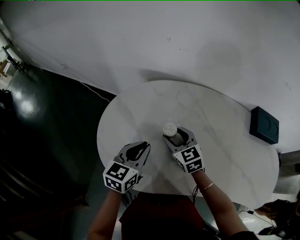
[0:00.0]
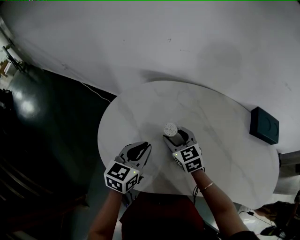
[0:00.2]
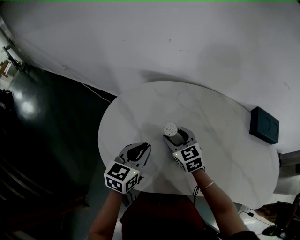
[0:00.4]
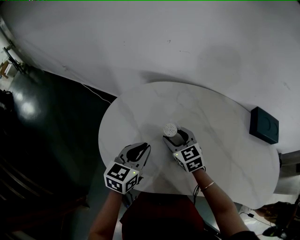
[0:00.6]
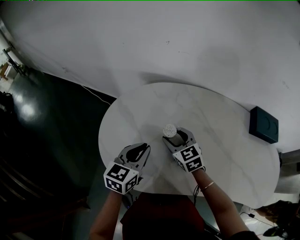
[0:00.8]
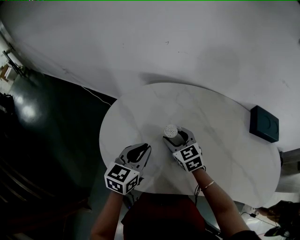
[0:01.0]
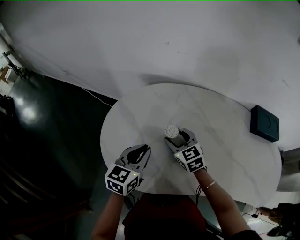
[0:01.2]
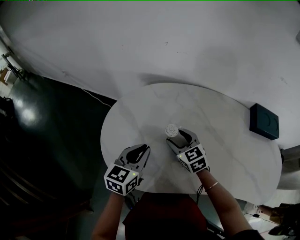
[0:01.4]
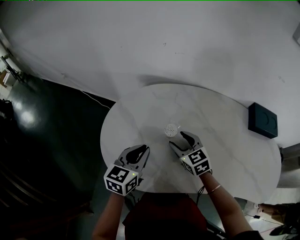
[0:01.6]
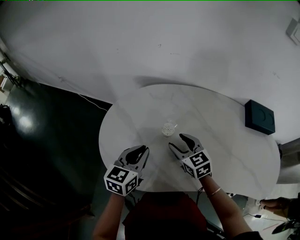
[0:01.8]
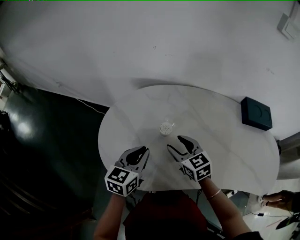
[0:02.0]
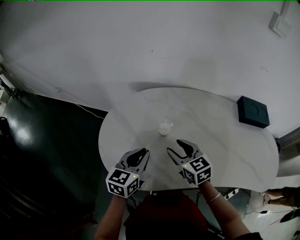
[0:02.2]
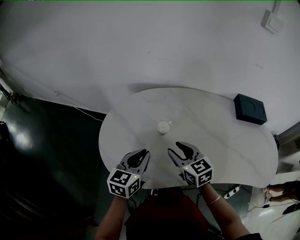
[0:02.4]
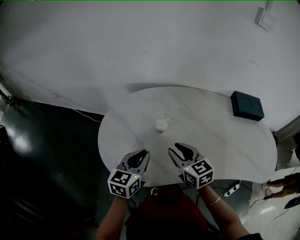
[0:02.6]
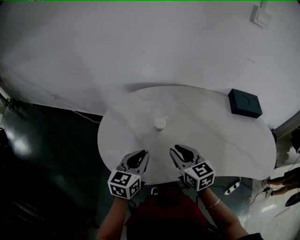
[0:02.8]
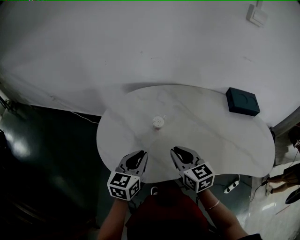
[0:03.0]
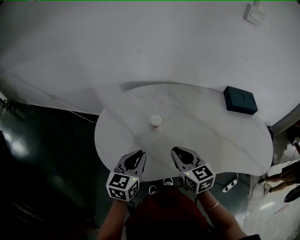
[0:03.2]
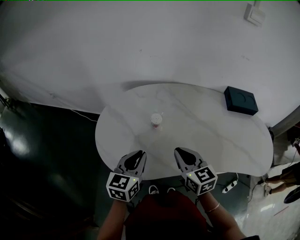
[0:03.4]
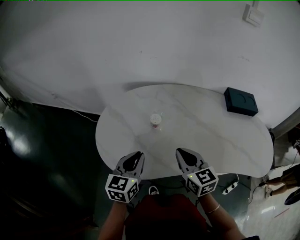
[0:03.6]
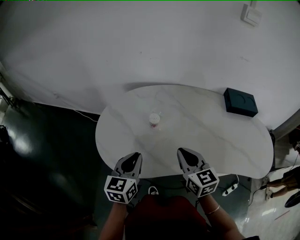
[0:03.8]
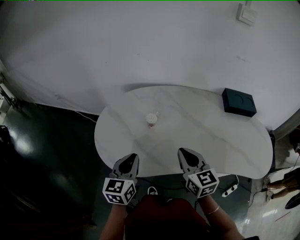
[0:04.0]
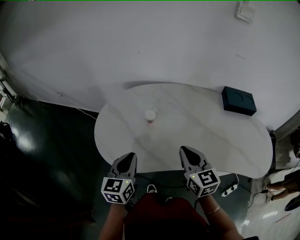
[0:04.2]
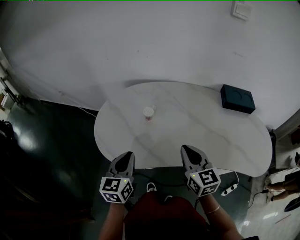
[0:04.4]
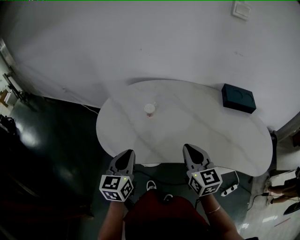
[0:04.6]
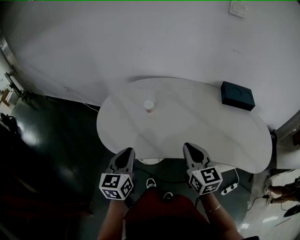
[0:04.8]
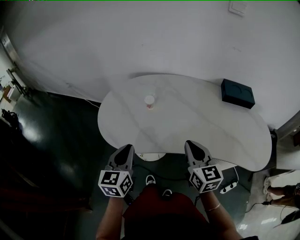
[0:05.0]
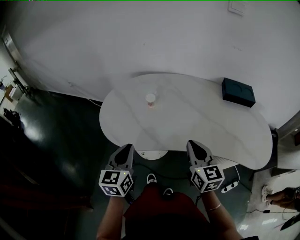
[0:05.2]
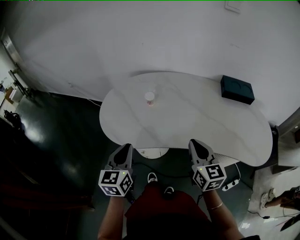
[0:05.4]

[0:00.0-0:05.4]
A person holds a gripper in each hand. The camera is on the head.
0:00.0 to 0:01.4: There are only small adjustments of the grippers.
0:01.4 to 0:02.8: The right gripper moves backward and upward, some 15 cm, swivels some 20 degrees, and closes; the left gripper shifts approximately 5 cm backward.
0:02.8 to 0:04.0: The left gripper is displaced backward by roughly 5 cm; the right gripper goes roughly 10 cm to the right and backward, and closes its fingers.
0:04.0 to 0:05.4: The right gripper heads backward and to the right, covering roughly 15 cm; the left gripper travels backward by about 10 cm.

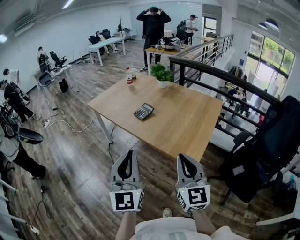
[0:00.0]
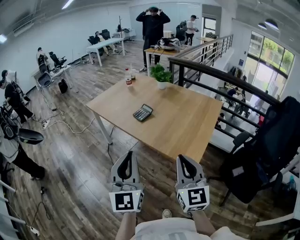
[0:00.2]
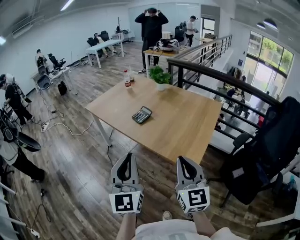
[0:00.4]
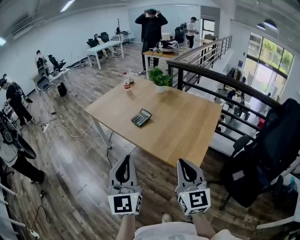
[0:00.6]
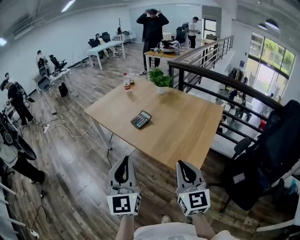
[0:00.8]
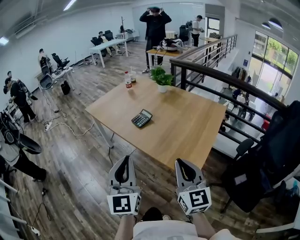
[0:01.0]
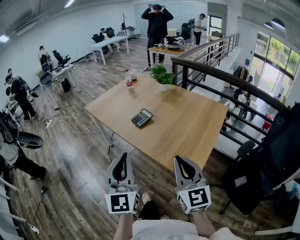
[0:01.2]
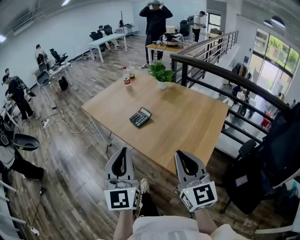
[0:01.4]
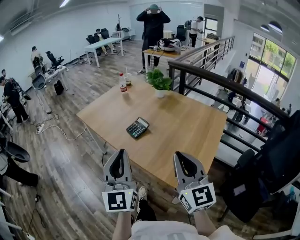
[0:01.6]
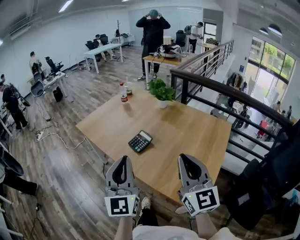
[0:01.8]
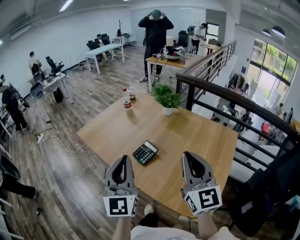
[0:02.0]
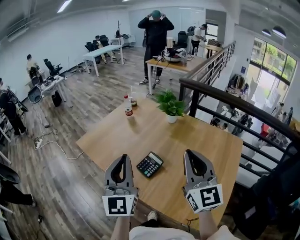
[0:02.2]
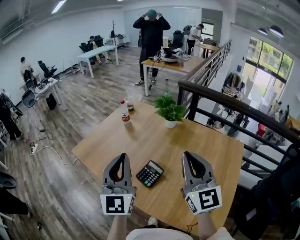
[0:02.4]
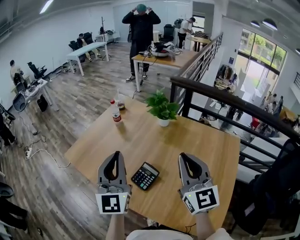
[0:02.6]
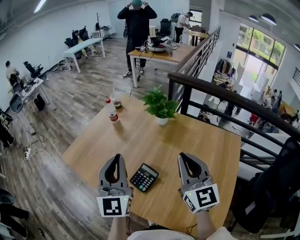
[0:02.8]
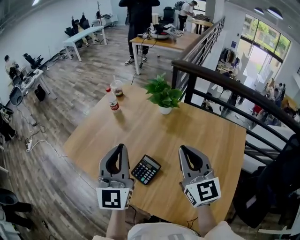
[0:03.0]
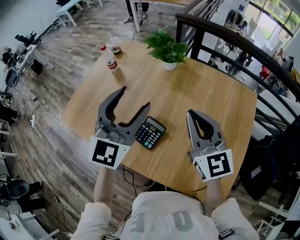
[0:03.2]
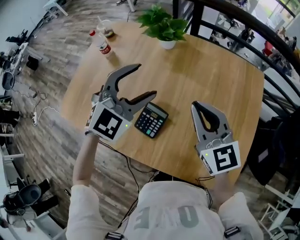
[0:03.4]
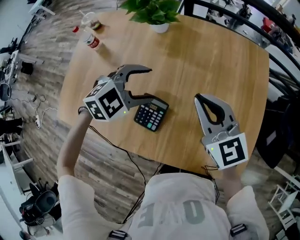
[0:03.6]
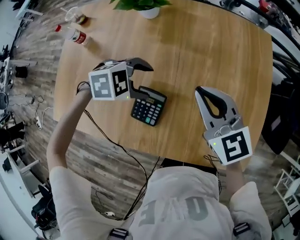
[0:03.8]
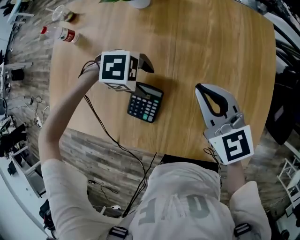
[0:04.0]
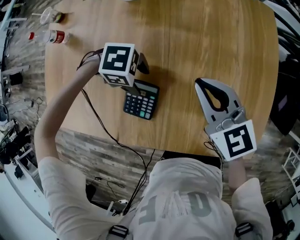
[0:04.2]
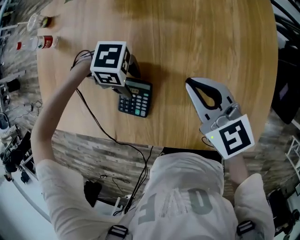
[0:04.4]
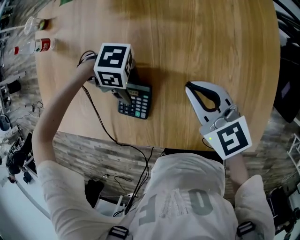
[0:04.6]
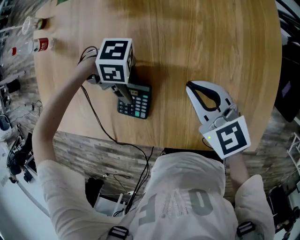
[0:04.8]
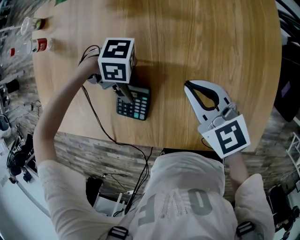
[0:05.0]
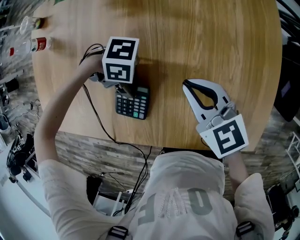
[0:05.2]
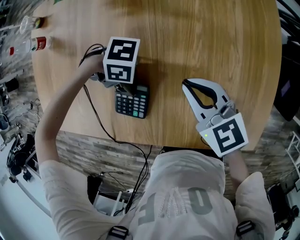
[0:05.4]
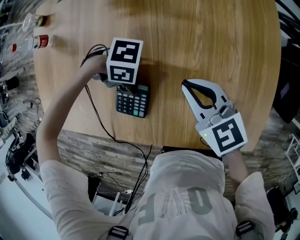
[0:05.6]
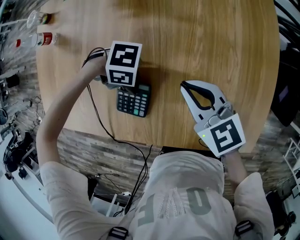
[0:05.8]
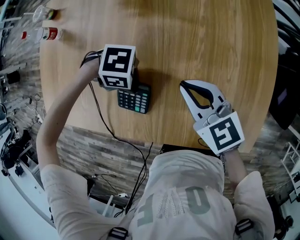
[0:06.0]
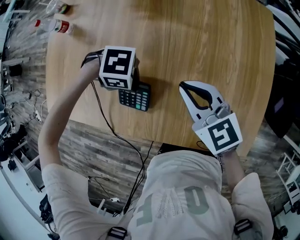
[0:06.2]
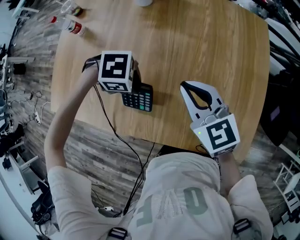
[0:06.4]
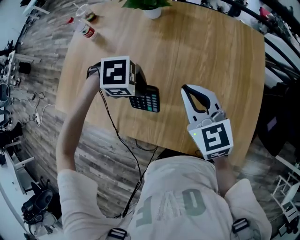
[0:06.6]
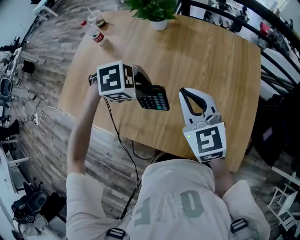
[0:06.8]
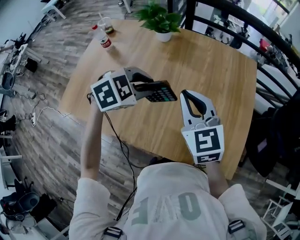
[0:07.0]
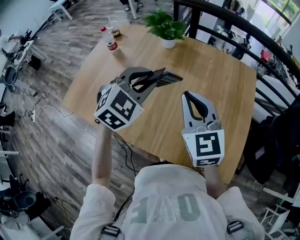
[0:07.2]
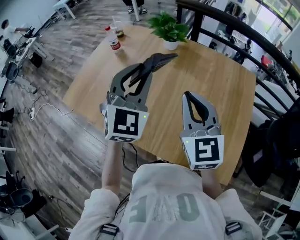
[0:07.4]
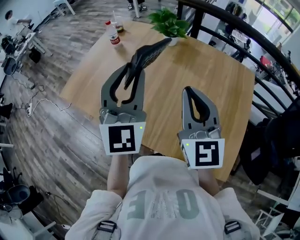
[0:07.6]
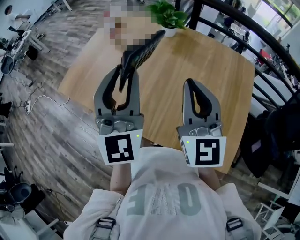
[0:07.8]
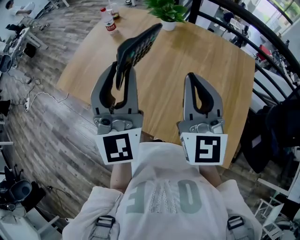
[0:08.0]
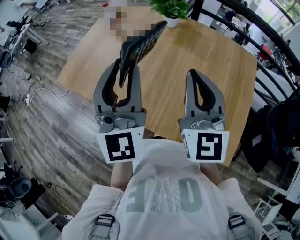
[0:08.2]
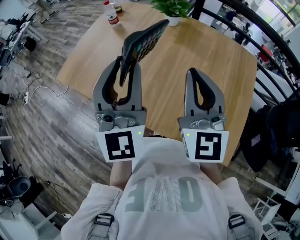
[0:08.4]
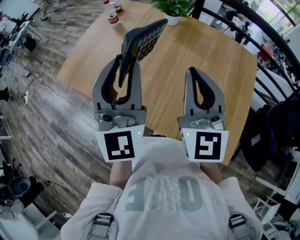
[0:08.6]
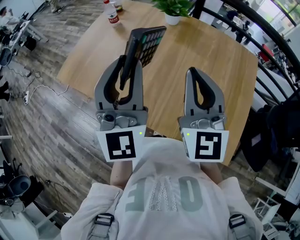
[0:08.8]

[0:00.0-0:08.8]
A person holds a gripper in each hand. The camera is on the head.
0:00.0 to 0:01.4: Both grippers move forward, some 10 cm.
0:01.4 to 0:03.0: Both grippers move forward, about 40 cm.
0:03.0 to 0:04.4: The right gripper shifts some 20 cm downward, and turns by some 30 degrees; the left gripper goes some 35 cm downward, points its fingers about 60 degrees further downward, and opens its fingers.
0:04.4 to 0:05.8: The left gripper closes its fingers.
0:05.8 to 0:07.4: The right gripper moves upward, approximately 25 cm, and turns by some 30 degrees; the left gripper heads upward, covering approximately 35 cm, and angles its fingers upward, by some 40 degrees.
0:07.4 to 0:08.8: The left gripper goes approximately 10 cm backward, and rotates approximately 30 degrees.

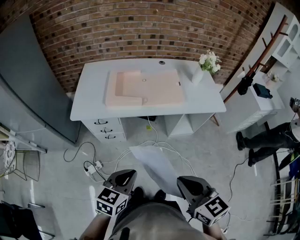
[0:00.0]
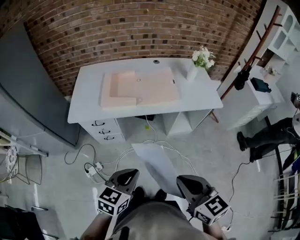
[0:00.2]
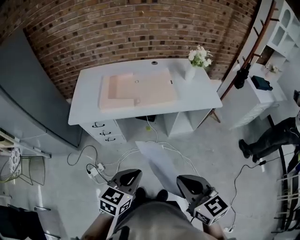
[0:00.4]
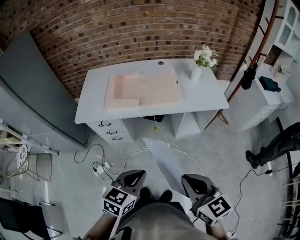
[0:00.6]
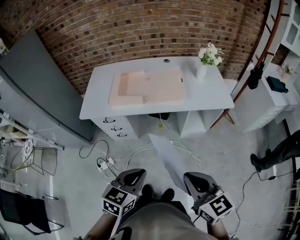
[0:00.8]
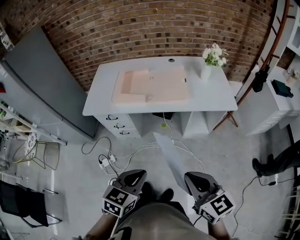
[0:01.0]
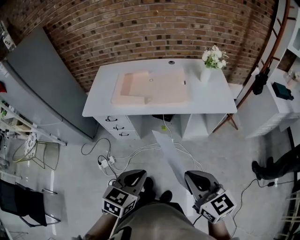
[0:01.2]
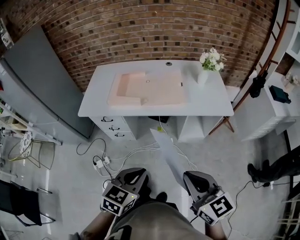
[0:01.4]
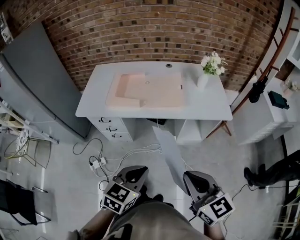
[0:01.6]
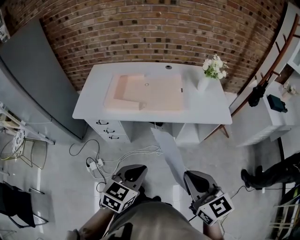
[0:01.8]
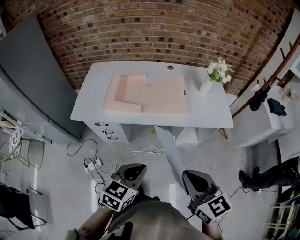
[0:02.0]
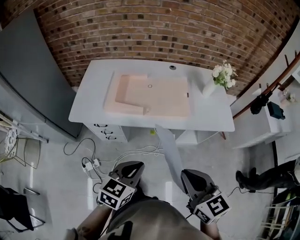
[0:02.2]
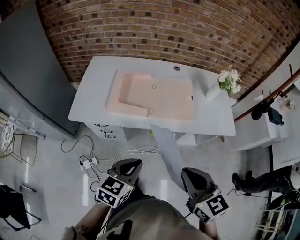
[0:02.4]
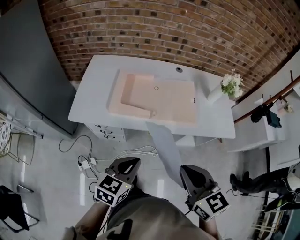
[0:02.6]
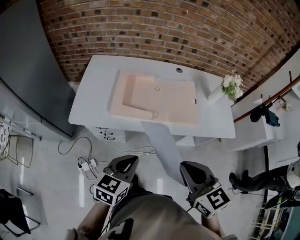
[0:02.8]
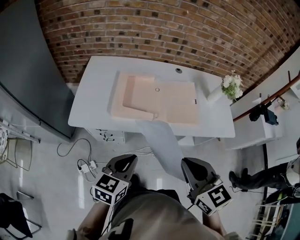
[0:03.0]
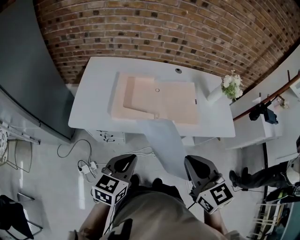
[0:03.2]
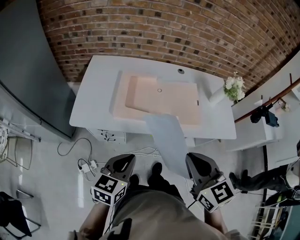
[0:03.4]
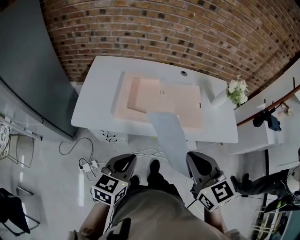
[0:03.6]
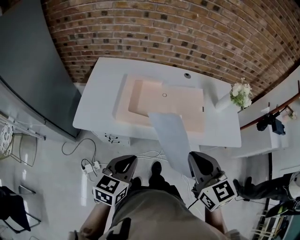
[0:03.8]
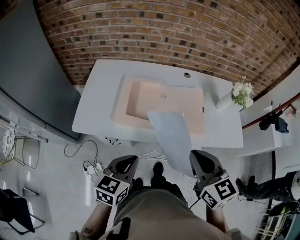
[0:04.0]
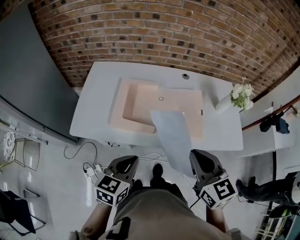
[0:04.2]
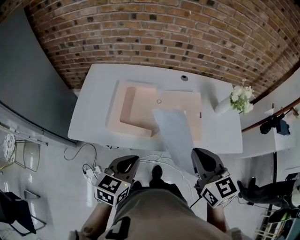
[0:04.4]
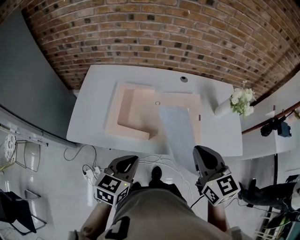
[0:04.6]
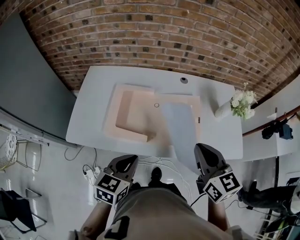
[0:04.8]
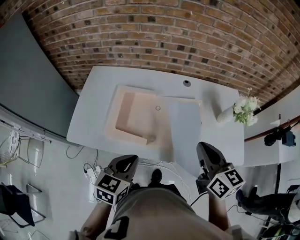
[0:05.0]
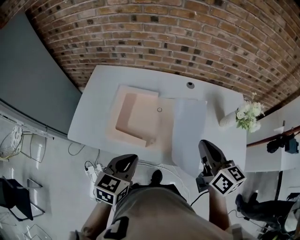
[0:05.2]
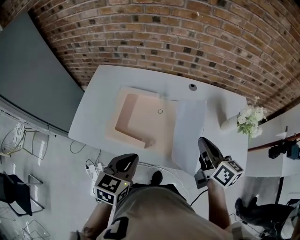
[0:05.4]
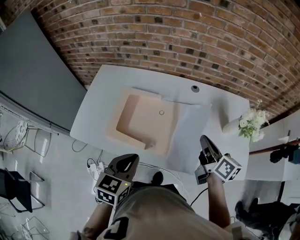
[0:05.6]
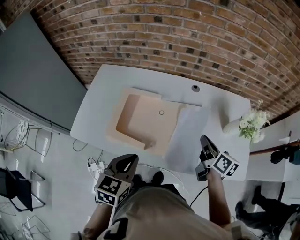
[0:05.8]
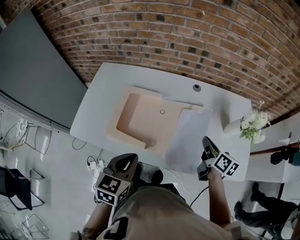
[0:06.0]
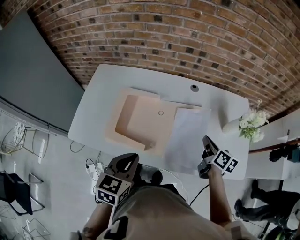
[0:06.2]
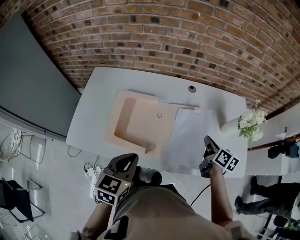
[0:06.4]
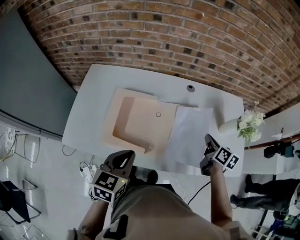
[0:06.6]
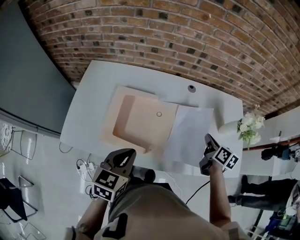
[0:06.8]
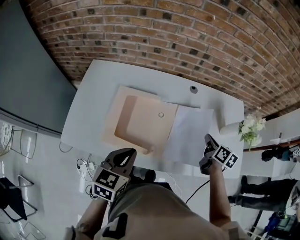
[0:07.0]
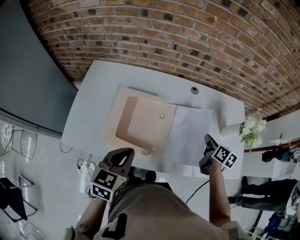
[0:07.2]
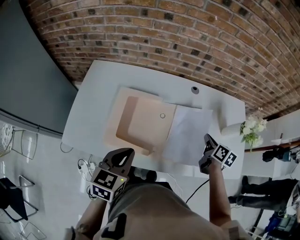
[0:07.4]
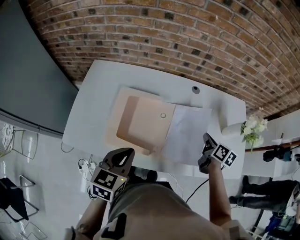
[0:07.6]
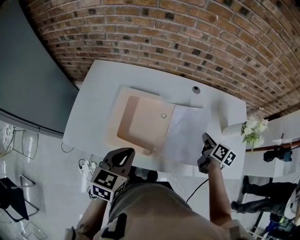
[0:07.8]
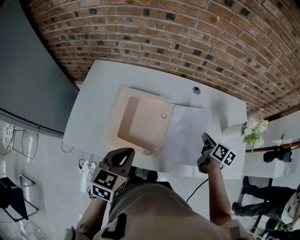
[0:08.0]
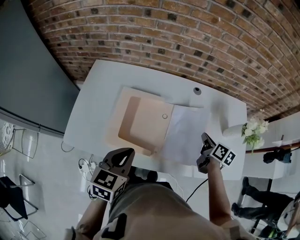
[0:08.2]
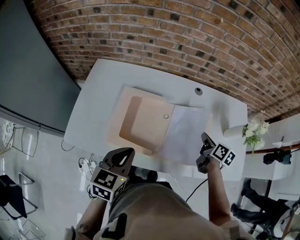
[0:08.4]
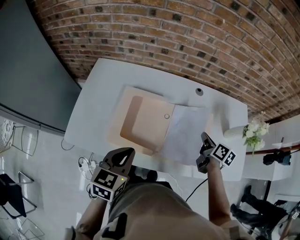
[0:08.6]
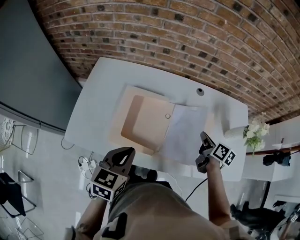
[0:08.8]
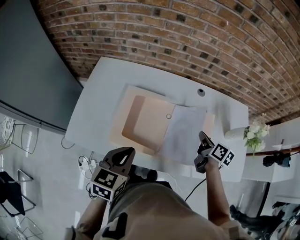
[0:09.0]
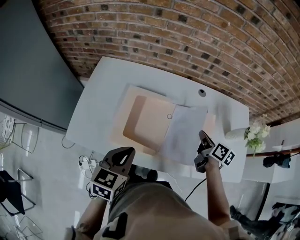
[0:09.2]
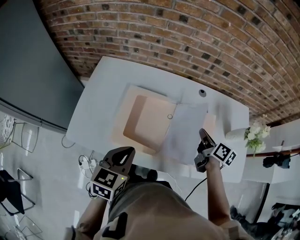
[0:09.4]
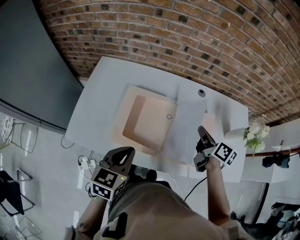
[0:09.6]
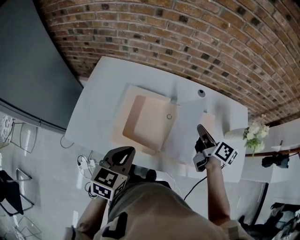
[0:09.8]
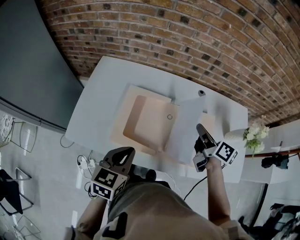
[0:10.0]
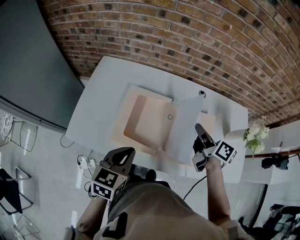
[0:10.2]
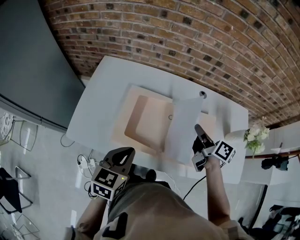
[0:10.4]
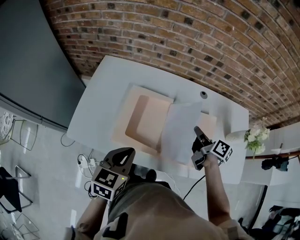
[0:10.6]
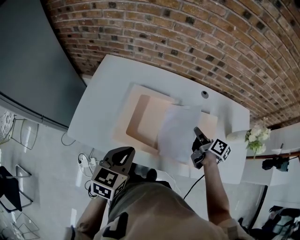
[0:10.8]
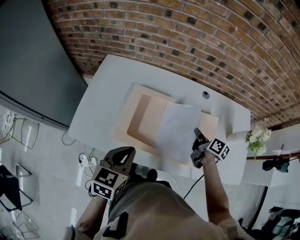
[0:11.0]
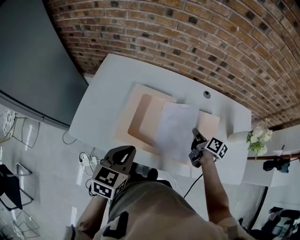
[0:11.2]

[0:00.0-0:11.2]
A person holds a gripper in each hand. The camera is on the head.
0:00.0 to 0:01.6: The two grippers go about 15 cm to the right.
0:01.6 to 0:03.2: The right gripper moves forward and to the left, roughly 25 cm, while the left gripper heads to the left and forward, covering about 25 cm.
0:03.2 to 0:04.8: The left gripper heads forward and to the right, covering roughly 15 cm. The right gripper is displaced forward and to the right by roughly 20 cm.
0:04.8 to 0:06.4: The right gripper is displaced downward, forward and to the right by about 25 cm, and changes its angle by approximately 40 degrees; the left gripper is displaced forward by roughly 5 cm.
0:06.4 to 0:08.0: The left gripper goes approximately 5 cm to the left, while the right gripper shifts by approximately 5 cm.
0:08.0 to 0:09.6: The right gripper heads to the left and upward, covering approximately 10 cm.
0:09.6 to 0:11.2: The right gripper shifts roughly 10 cm downward.
